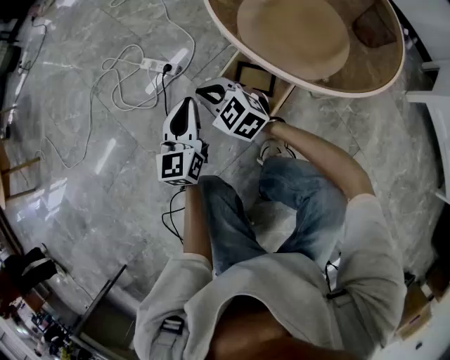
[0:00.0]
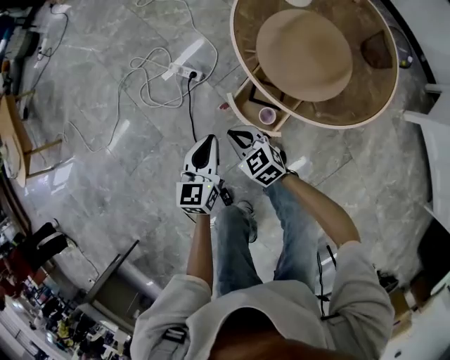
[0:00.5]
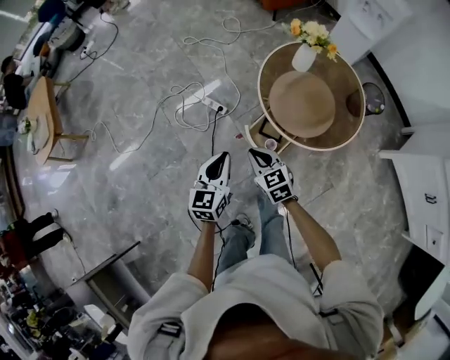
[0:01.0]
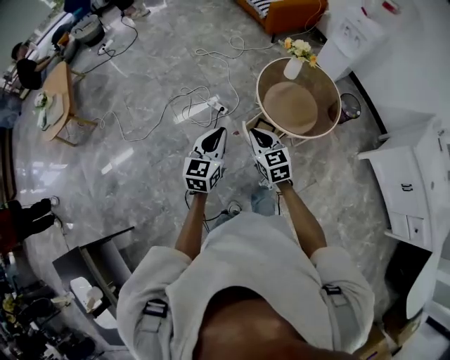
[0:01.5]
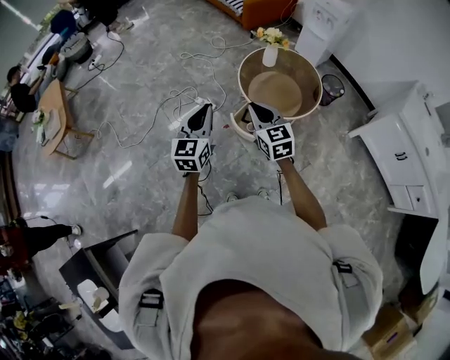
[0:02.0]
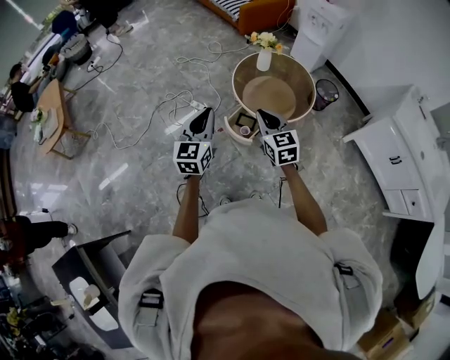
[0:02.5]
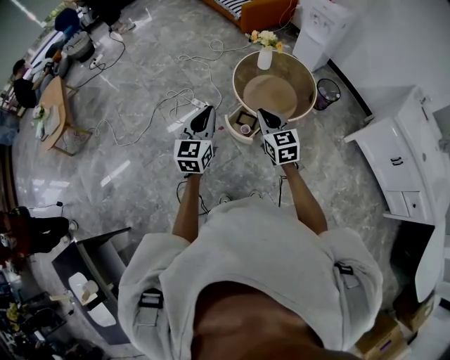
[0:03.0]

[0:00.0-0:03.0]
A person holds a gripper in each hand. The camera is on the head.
0:00.0 to 0:01.5: The two grippers go roughly 60 cm upward. The right gripper swivels about 20 degrees.
0:01.5 to 0:03.0: The grippers both shift to the right, upward and backward by roughly 15 cm.

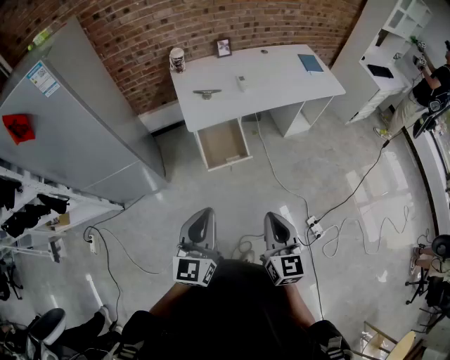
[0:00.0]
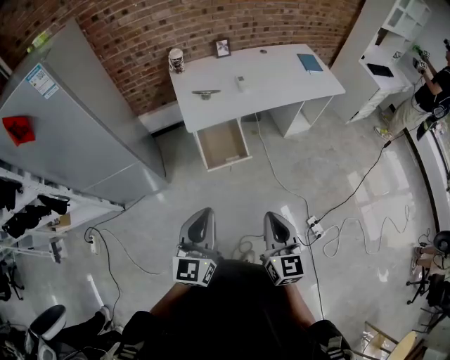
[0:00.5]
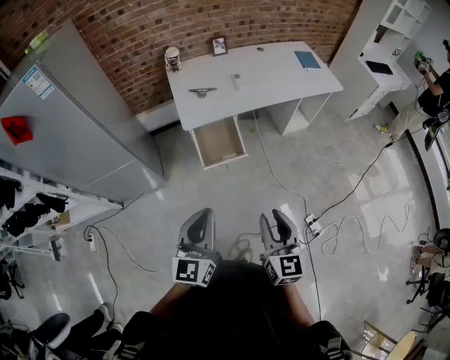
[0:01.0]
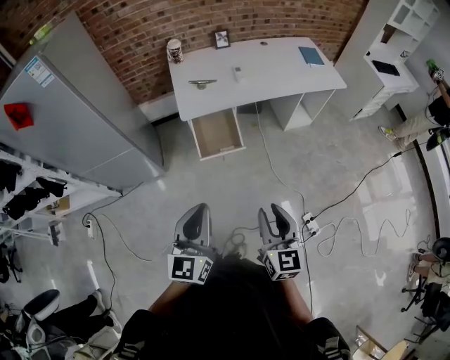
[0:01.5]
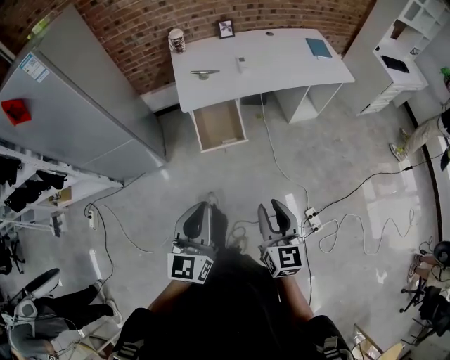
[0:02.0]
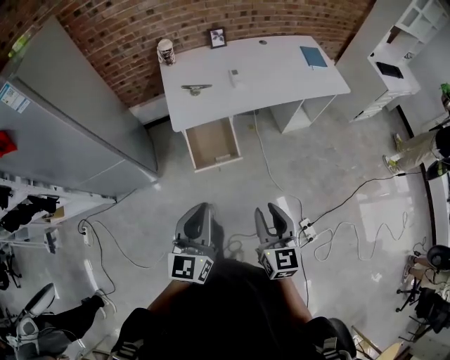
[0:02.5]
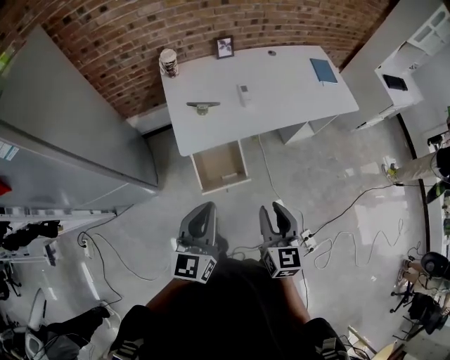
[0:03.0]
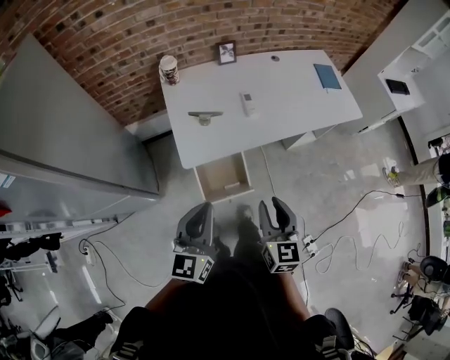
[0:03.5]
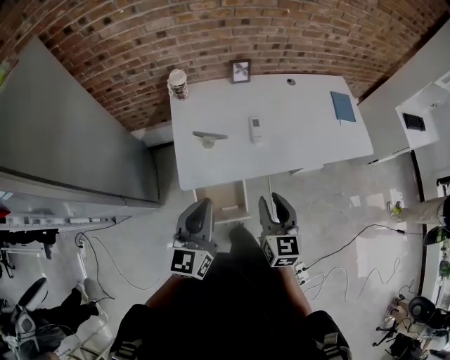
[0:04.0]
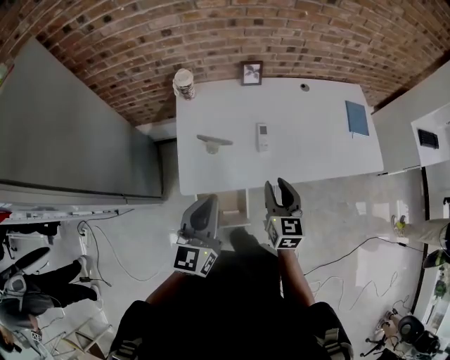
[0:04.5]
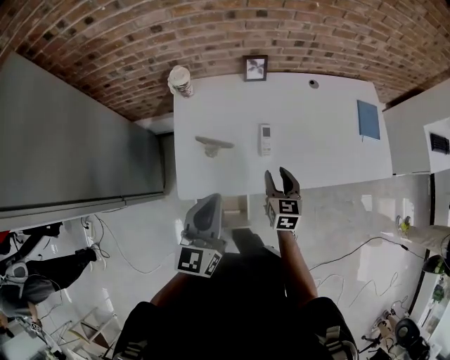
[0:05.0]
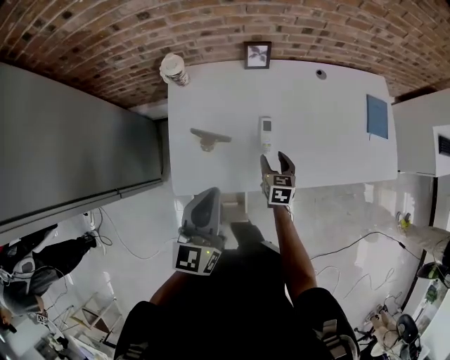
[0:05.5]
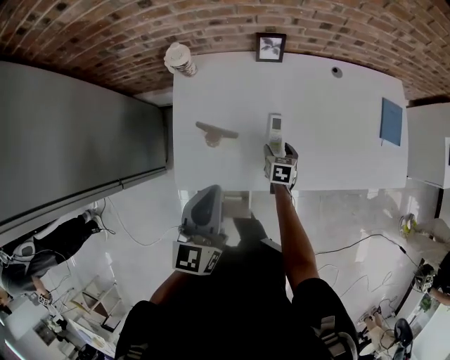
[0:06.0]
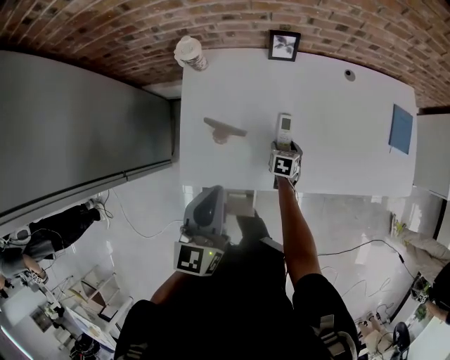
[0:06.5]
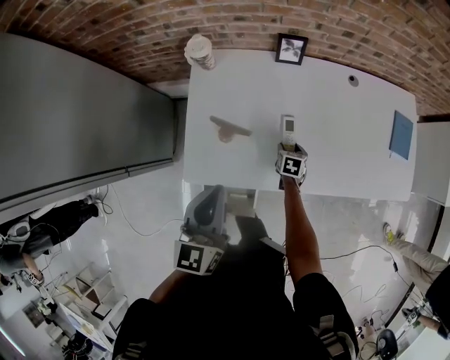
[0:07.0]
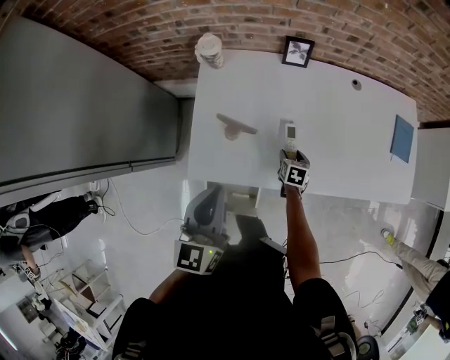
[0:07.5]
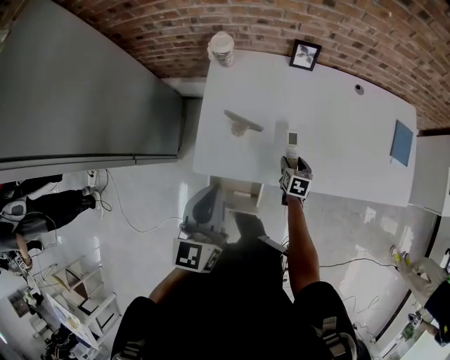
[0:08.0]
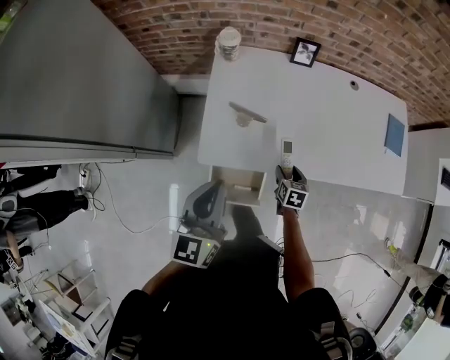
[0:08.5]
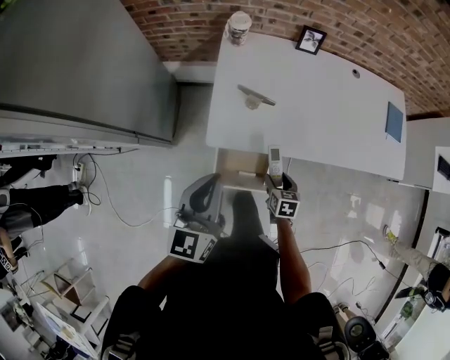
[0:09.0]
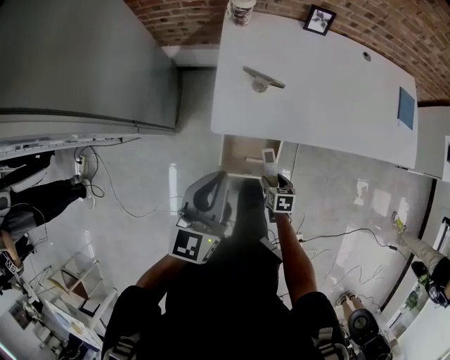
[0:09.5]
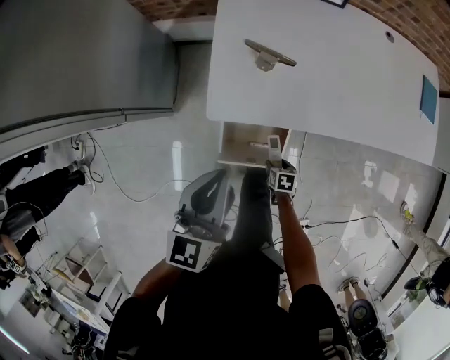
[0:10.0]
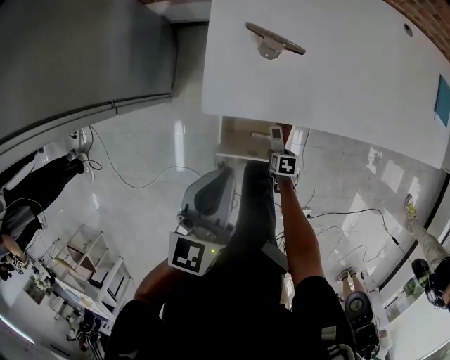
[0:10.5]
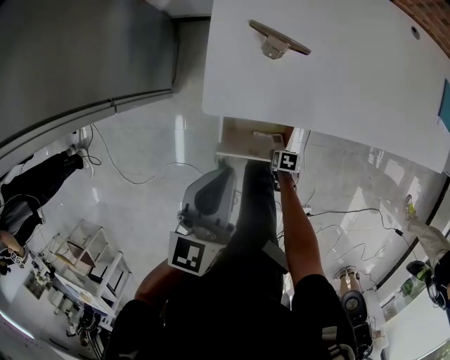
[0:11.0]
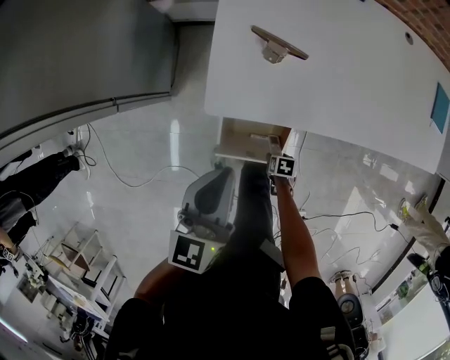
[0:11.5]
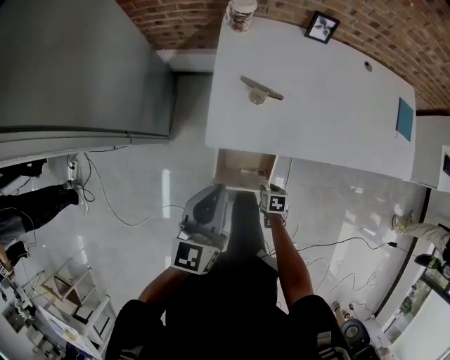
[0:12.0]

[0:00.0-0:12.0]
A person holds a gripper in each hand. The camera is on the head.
0:00.0 to 0:02.0: Both grippers move to the right, about 10 cm. The right gripper opens its fingers.
0:02.0 to 0:04.0: The two grippers travel together, forward, about 50 cm.
0:04.0 to 0:06.0: The right gripper is displaced downward and forward by some 40 cm, tilts its fingers some 40 degrees downward, and opens up; the left gripper goes roughly 20 cm forward.
0:06.0 to 0:08.0: The right gripper goes about 5 cm backward. The left gripper heads backward and to the left, covering roughly 10 cm.
0:08.0 to 0:10.0: The right gripper shifts some 35 cm backward, downward and to the left, and rotates roughly 20 degrees; the left gripper heads downward, backward and to the left, covering approximately 15 cm.
0:10.0 to 0:12.0: The right gripper reaches approximately 10 cm downward, then returns.

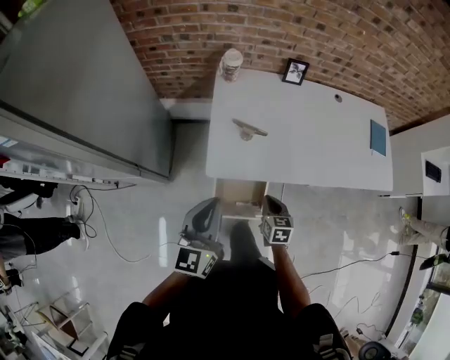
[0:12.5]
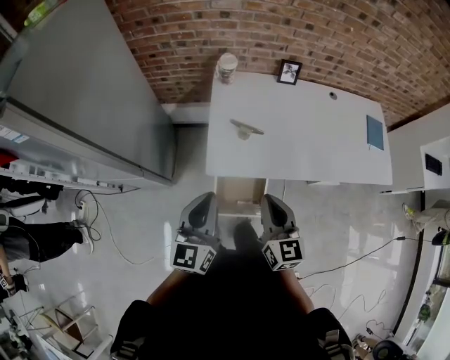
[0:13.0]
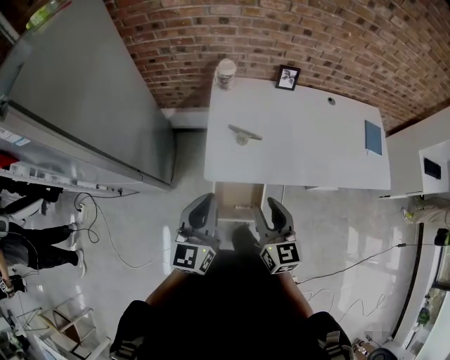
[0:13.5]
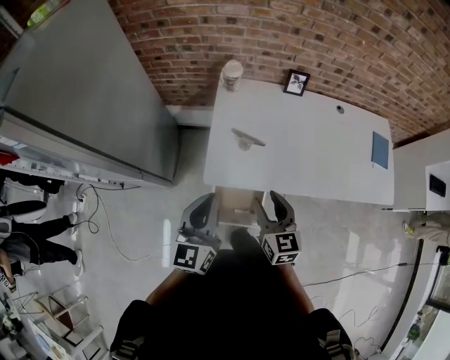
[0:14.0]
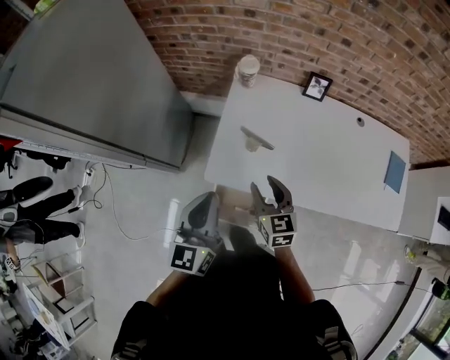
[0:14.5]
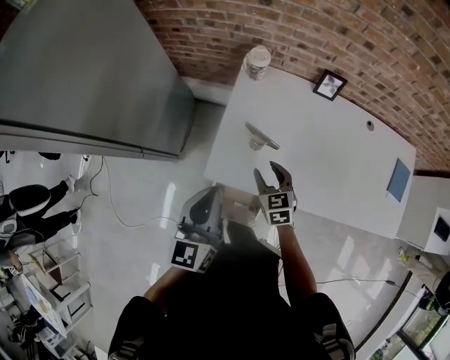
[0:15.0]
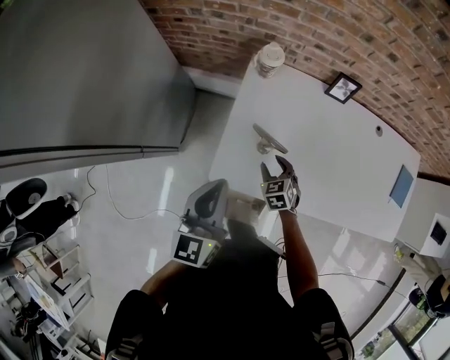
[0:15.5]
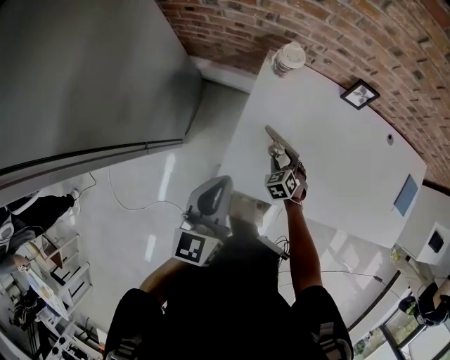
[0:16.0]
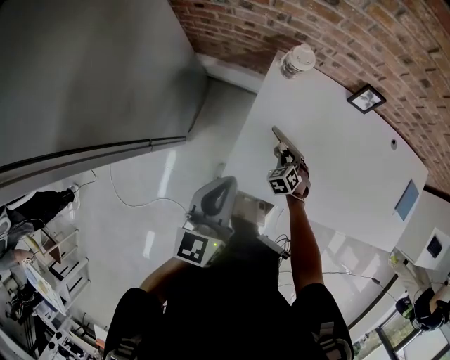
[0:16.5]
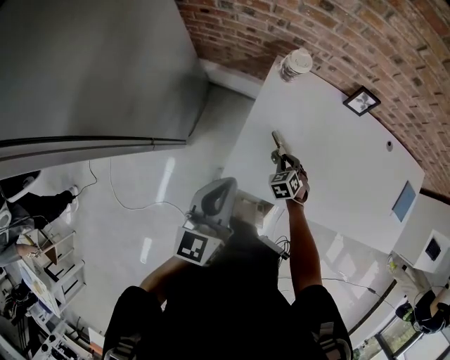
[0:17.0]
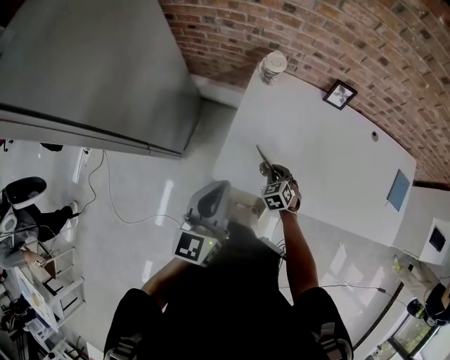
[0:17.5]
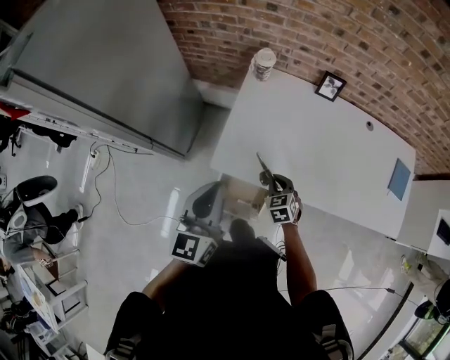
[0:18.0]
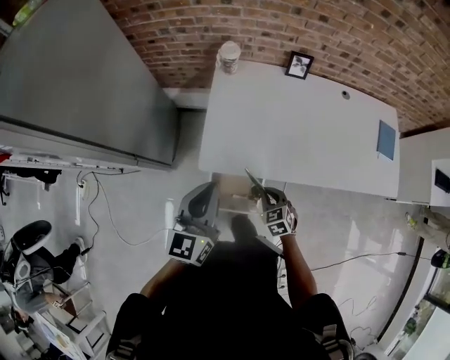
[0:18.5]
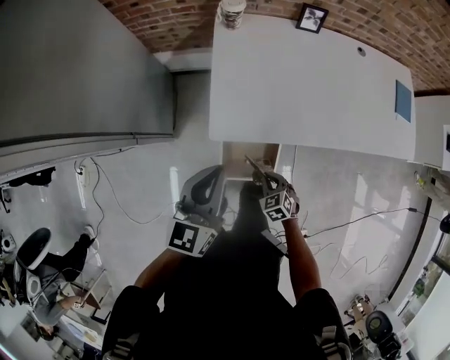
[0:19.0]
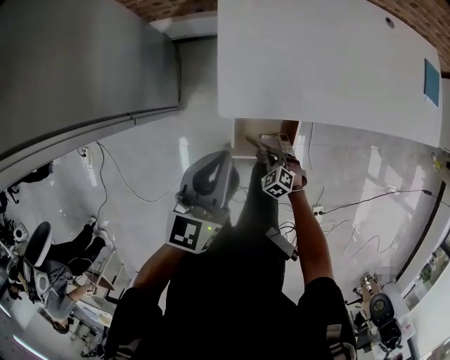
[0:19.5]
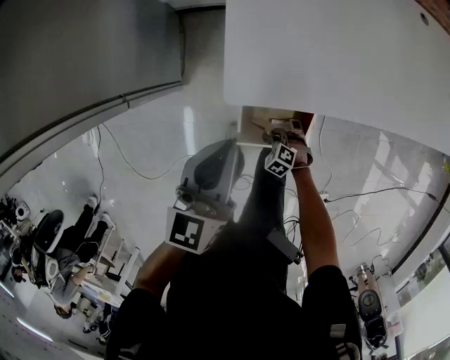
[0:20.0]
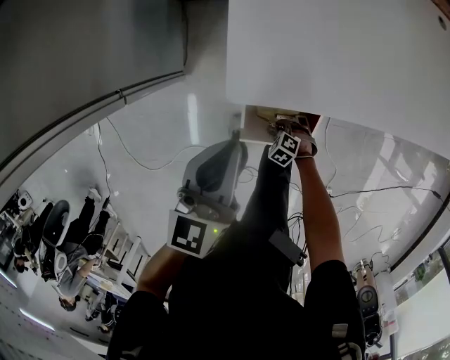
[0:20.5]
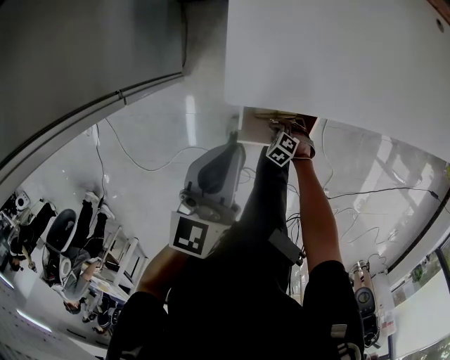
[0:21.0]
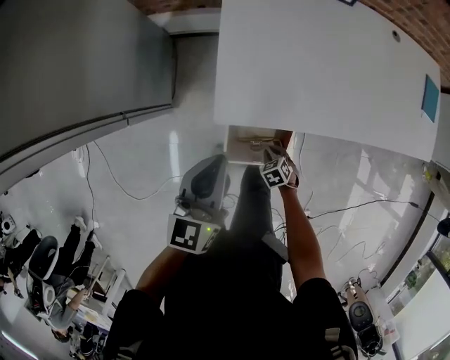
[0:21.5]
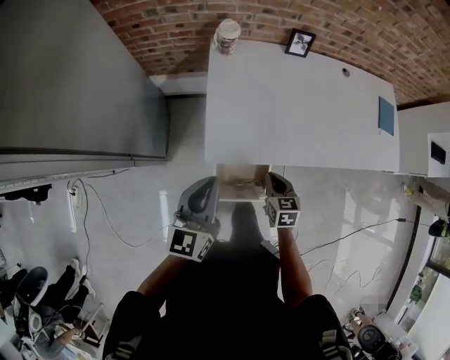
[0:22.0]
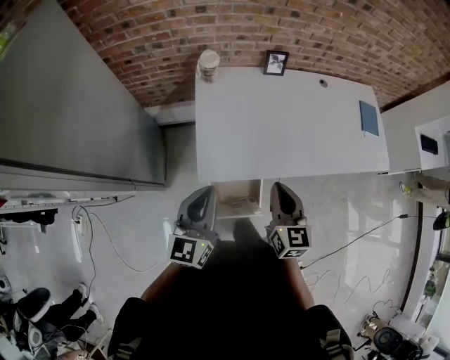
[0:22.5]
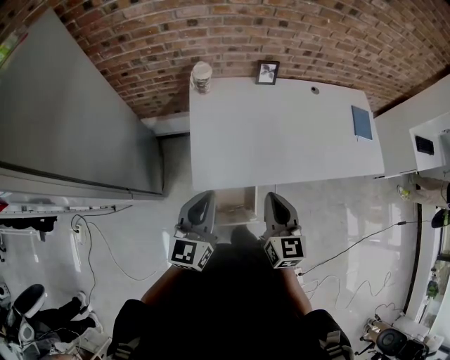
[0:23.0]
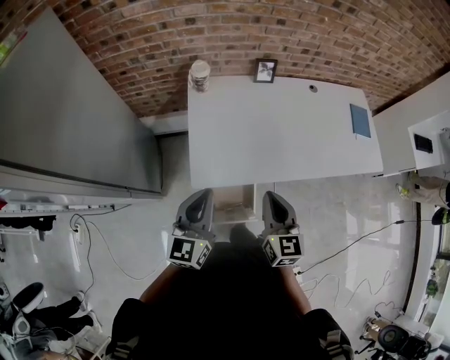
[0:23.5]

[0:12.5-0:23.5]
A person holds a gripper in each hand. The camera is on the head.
0:12.5 to 0:14.5: The left gripper heads forward, covering approximately 5 cm; the right gripper heads upward and forward, covering approximately 20 cm, changes its angle by approximately 30 degrees, and opens up.
0:14.5 to 0:16.0: The right gripper shifts some 30 cm downward and forward, and tilts its fingers about 30 degrees downward, while the left gripper shifts roughly 15 cm forward and downward.
0:16.0 to 0:18.0: The grippers both shift backward and upward by approximately 15 cm. The right gripper closes its fingers.
0:18.0 to 0:20.0: The left gripper shifts about 20 cm downward, and changes its angle by approximately 20 degrees; the right gripper goes some 30 cm downward, and turns by some 40 degrees.
0:20.0 to 0:21.5: The right gripper changes place by about 5 cm, and swivels roughly 30 degrees.
0:21.5 to 0:23.5: The right gripper is displaced upward by some 50 cm, and points its fingers approximately 60 degrees further upward; the left gripper goes some 15 cm upward.
